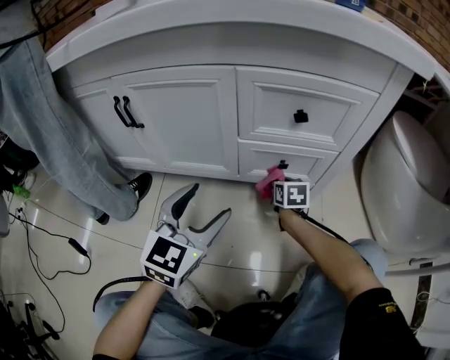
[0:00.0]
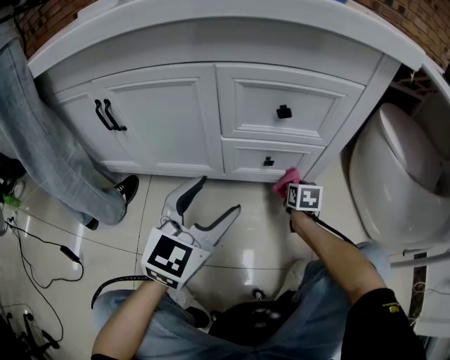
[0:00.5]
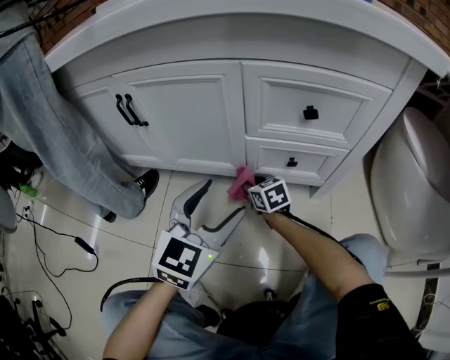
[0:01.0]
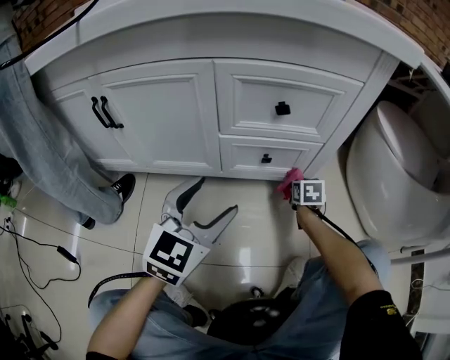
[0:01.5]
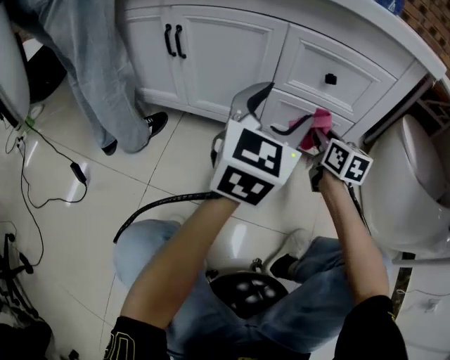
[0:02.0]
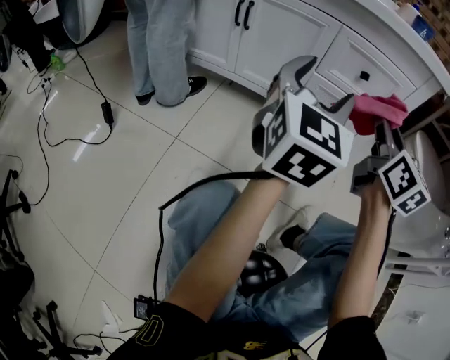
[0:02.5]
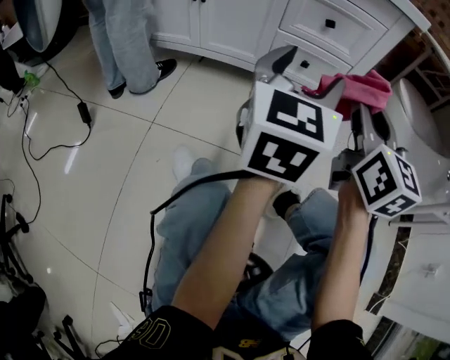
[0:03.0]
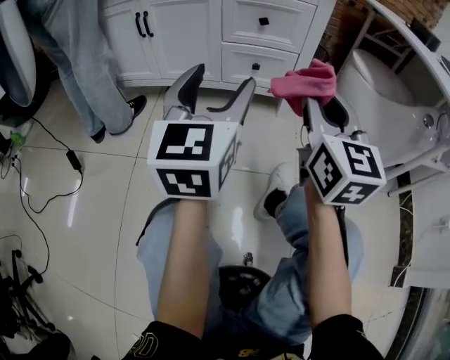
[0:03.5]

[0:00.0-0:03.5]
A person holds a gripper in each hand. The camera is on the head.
0:00.0 to 0:02.0: The left gripper shifts roughly 10 cm upward. Meanwhile the right gripper moves upward, about 20 cm, and turns by about 20 degrees.
0:02.0 to 0:03.5: The right gripper moves backward and upward, approximately 35 cm, and swivels approximately 30 degrees, while the left gripper goes approximately 20 cm backward.

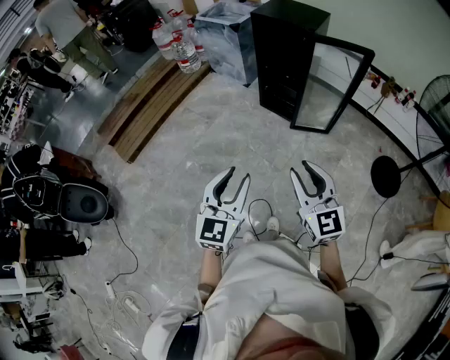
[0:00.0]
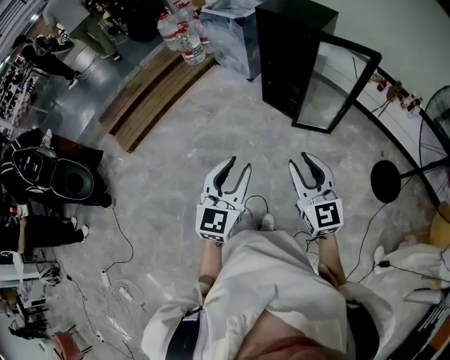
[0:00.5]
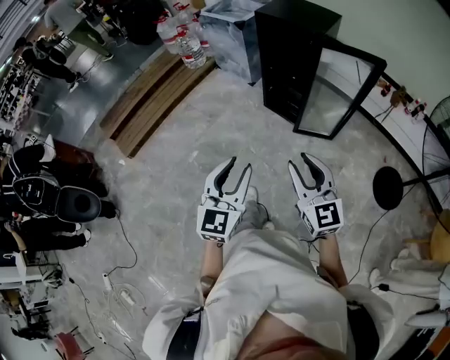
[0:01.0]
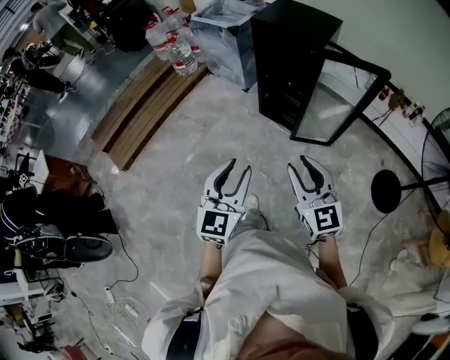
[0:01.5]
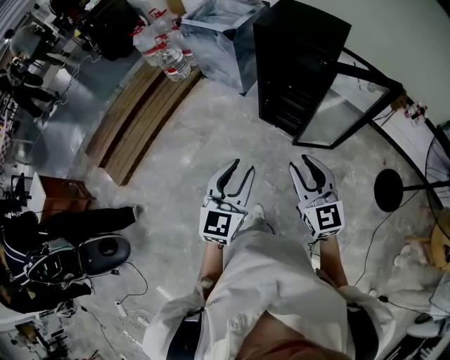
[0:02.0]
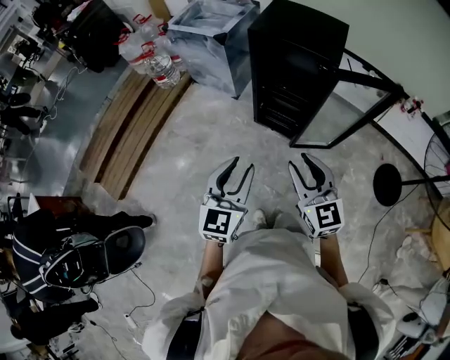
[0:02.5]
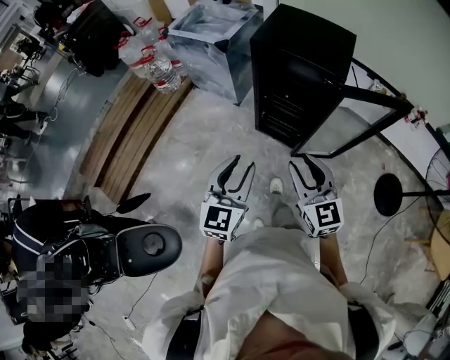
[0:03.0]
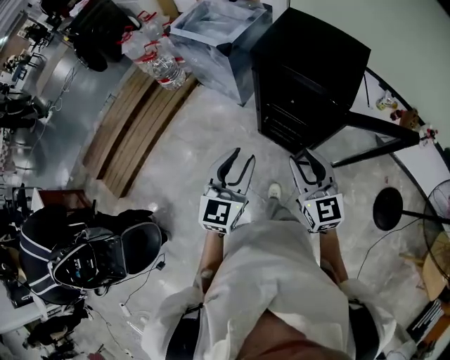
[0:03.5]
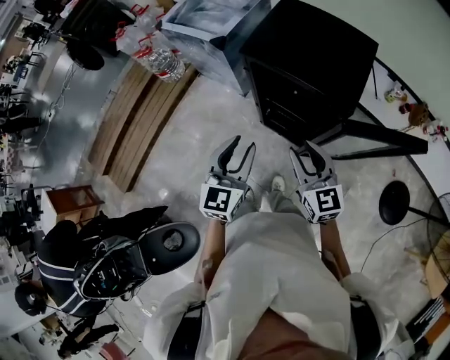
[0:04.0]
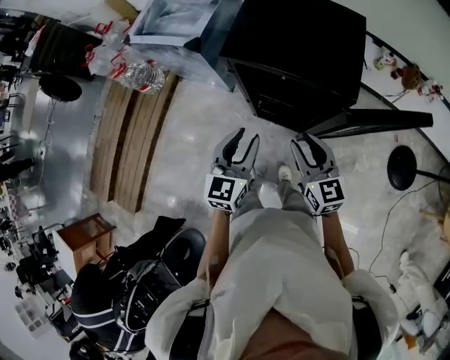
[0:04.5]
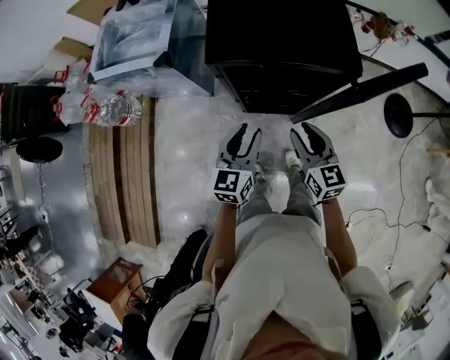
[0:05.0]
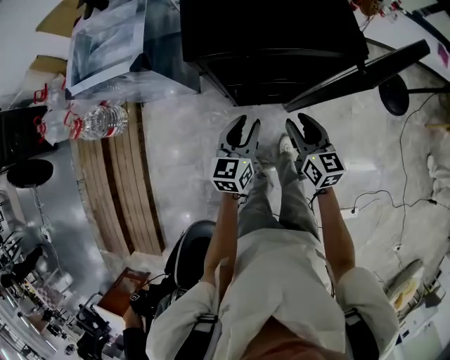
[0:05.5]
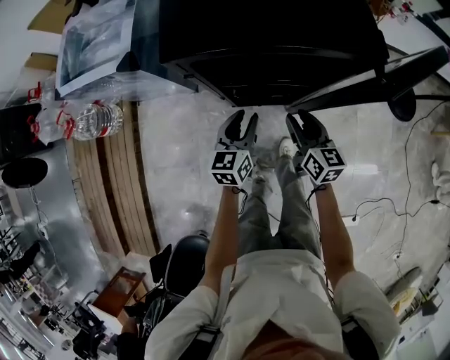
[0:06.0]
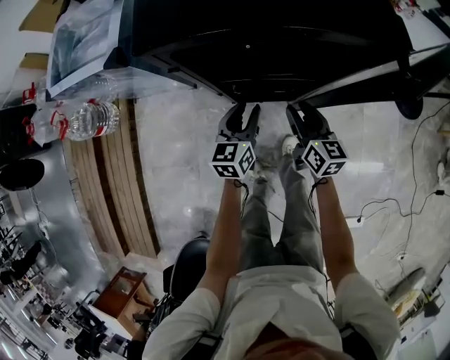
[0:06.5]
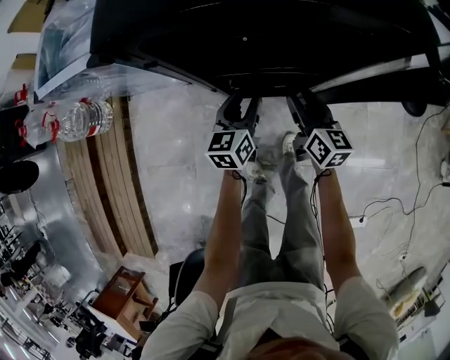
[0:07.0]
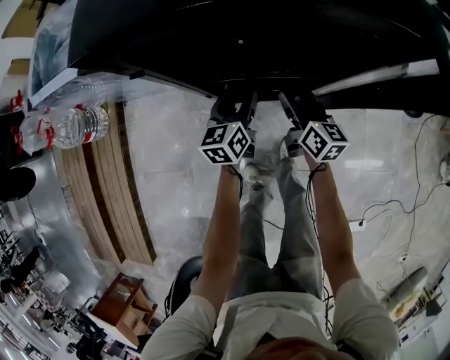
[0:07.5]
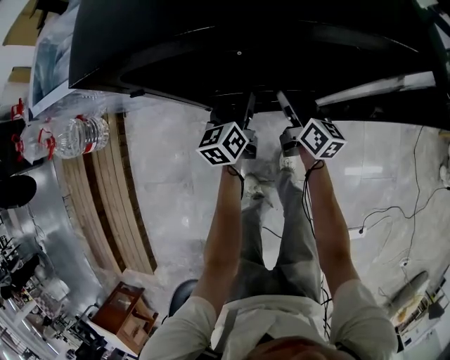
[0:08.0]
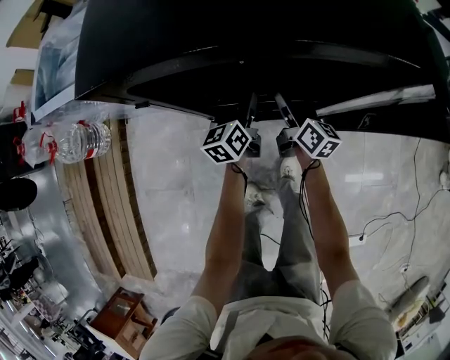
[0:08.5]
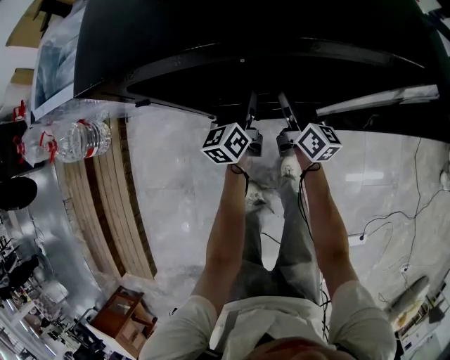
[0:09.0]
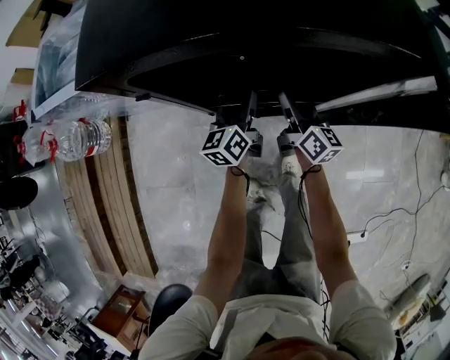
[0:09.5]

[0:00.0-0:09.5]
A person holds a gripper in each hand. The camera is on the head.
0:00.0 to 0:02.0: The two grippers go about 30 cm forward.
0:02.0 to 0:04.0: The grippers both shift forward by approximately 35 cm.
0:04.0 to 0:05.5: Both grippers move downward, about 20 cm. The right gripper turns by about 40 degrees. The left gripper changes its angle by about 40 degrees.
0:05.5 to 0:07.5: Both grippers travel together downward and forward, about 25 cm.

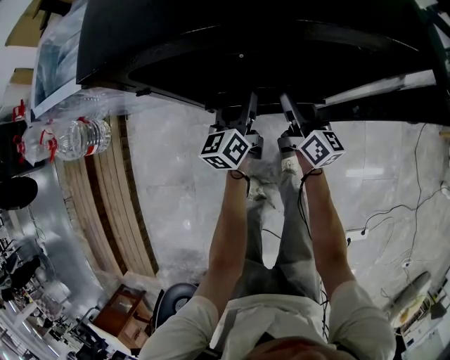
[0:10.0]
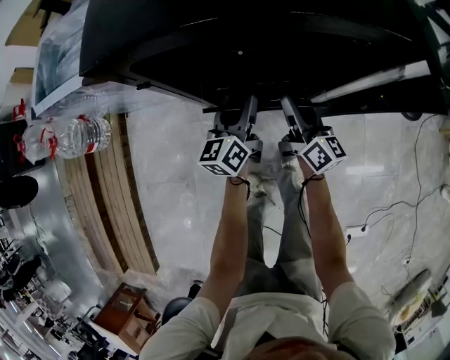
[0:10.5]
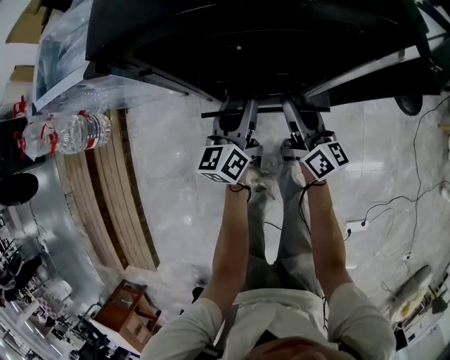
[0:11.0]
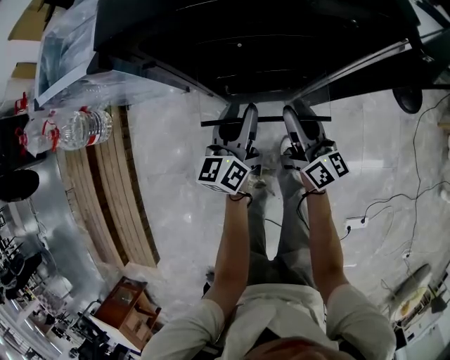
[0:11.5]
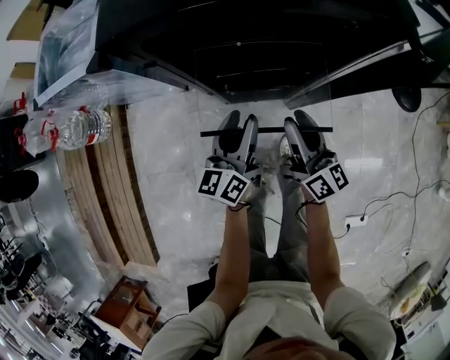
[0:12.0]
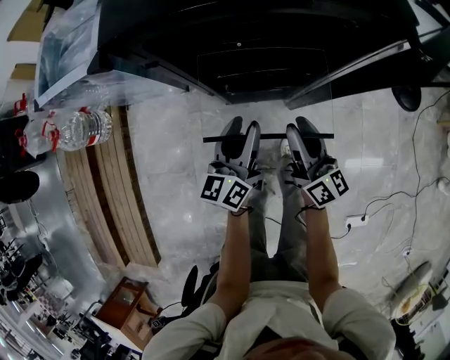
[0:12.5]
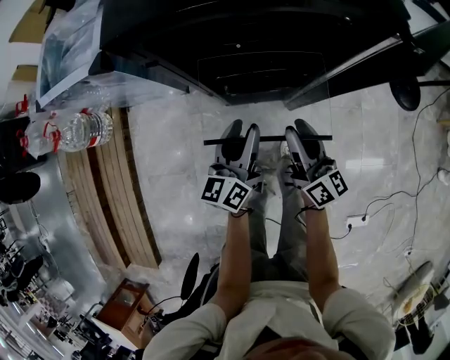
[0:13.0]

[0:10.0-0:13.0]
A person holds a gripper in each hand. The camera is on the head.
0:10.0 to 0:11.5: The two grippers go roughly 10 cm backward and upward.
0:11.5 to 0:13.0: The right gripper moves about 5 cm.

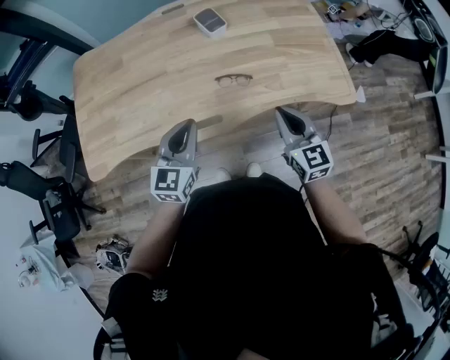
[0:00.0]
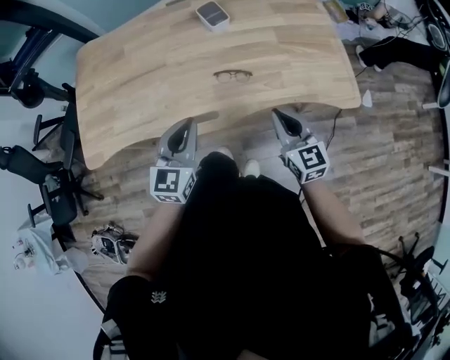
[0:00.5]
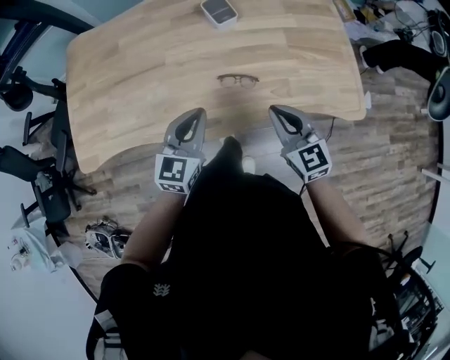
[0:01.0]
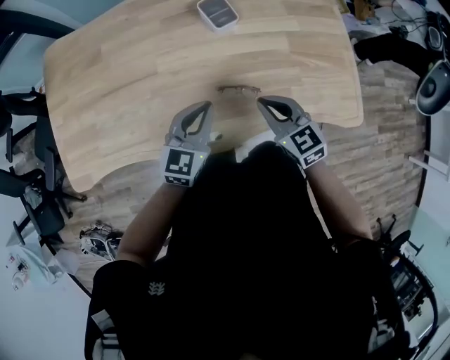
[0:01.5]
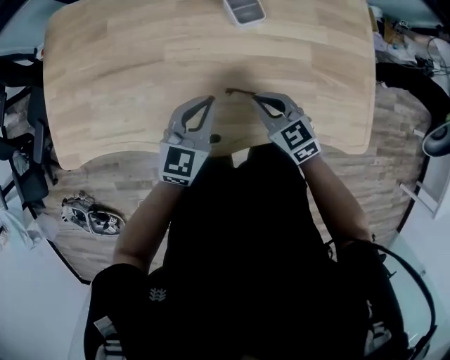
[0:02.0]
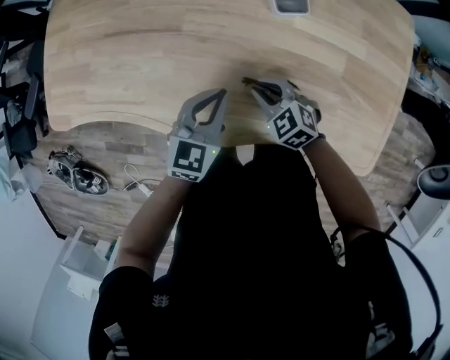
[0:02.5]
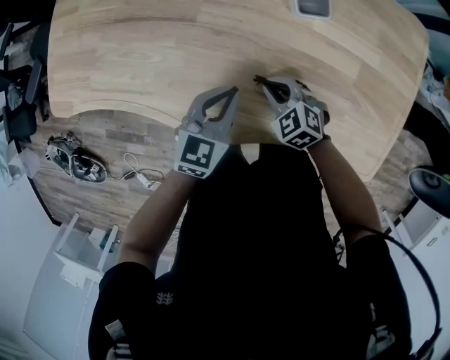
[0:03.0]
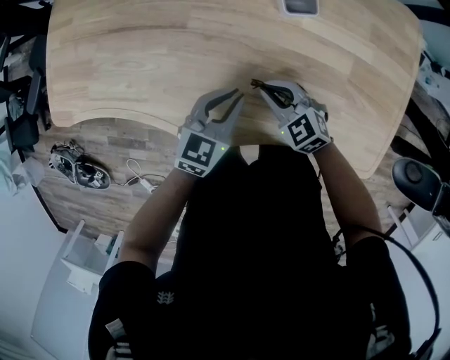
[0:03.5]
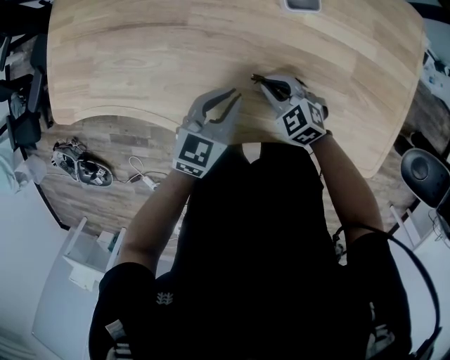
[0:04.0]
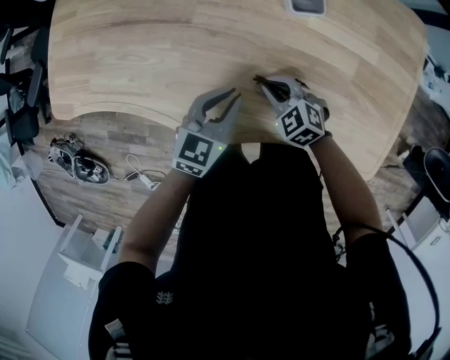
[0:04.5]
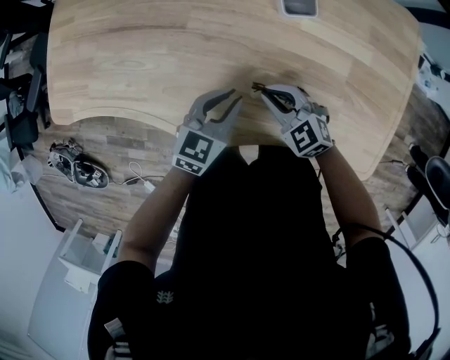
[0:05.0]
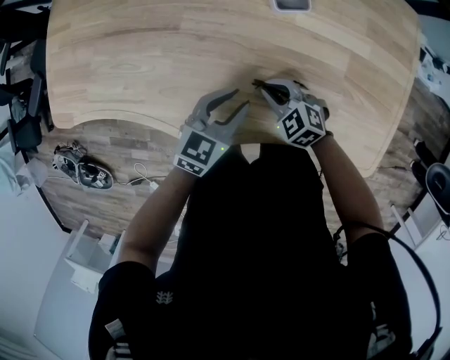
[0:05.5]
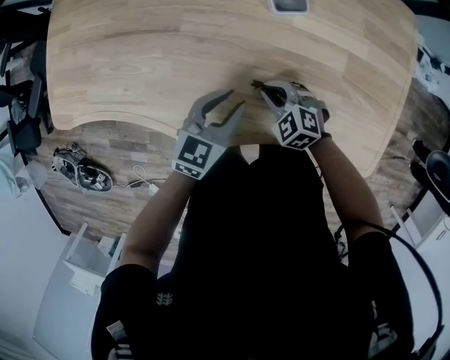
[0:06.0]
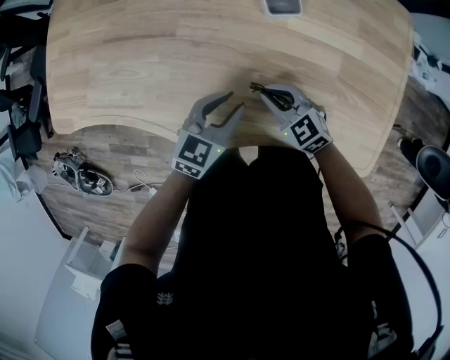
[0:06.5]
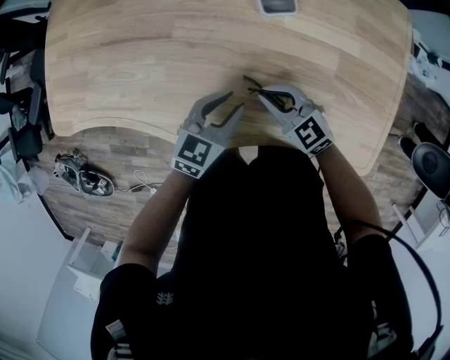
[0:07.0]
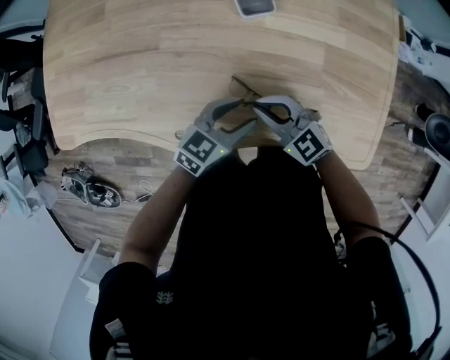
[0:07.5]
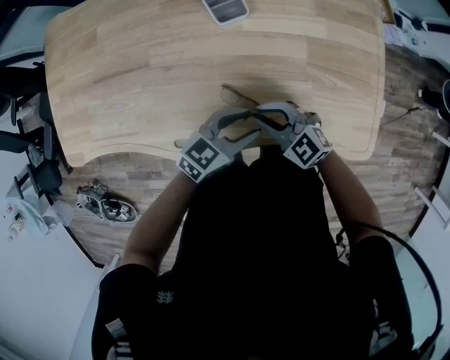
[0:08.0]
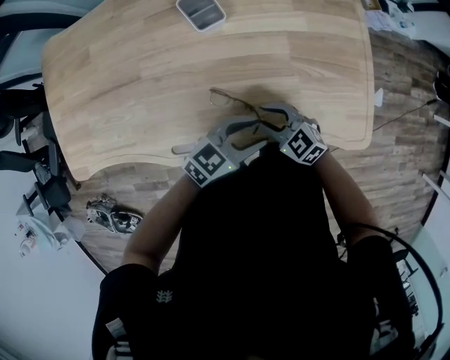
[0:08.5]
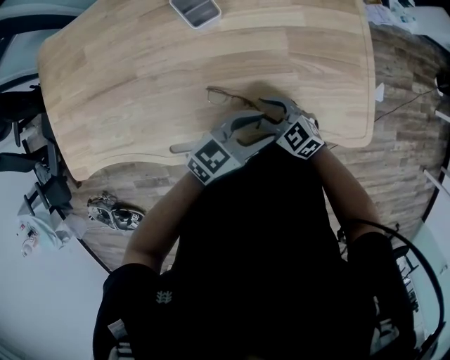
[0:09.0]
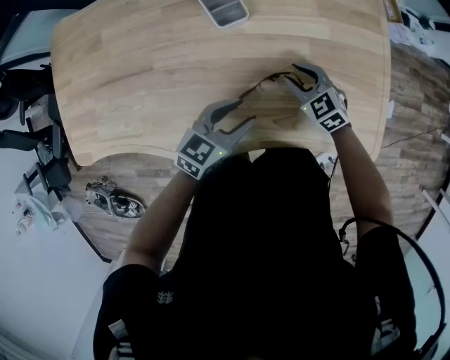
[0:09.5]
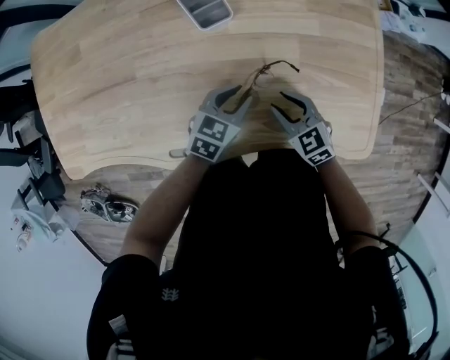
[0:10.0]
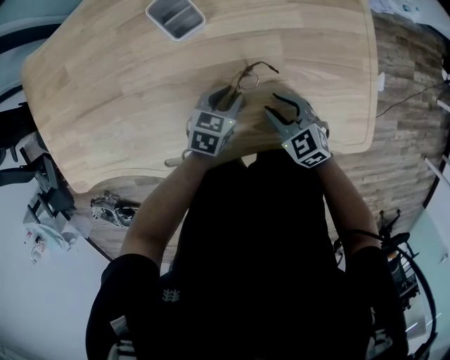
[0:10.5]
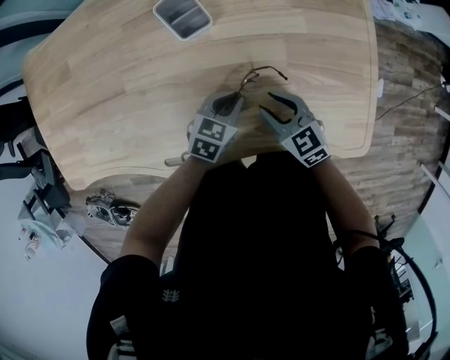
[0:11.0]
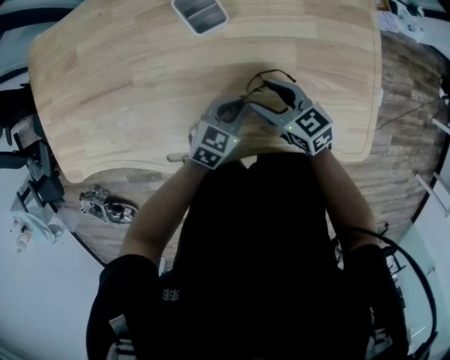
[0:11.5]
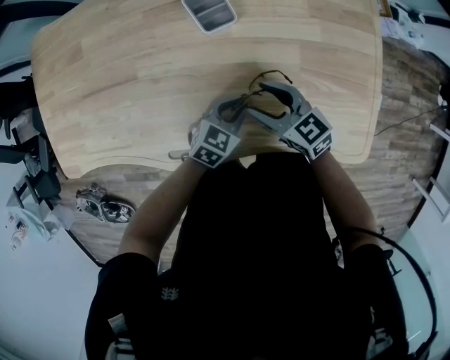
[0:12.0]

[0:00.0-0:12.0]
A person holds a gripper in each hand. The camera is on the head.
0:00.0 to 0:02.0: Both grippers travel together forward and downward, approximately 25 cm. The right gripper swivels about 40 degrees.
0:02.0 to 0:04.0: The grippers both shift downward by some 10 cm. The right gripper rotates some 30 degrees.
0:04.0 to 0:06.0: The grippers move only a little.
0:06.0 to 0:08.0: The left gripper ends up about 15 cm from where it was, and rotates some 30 degrees, while the right gripper shifts some 10 cm upward, and swivels about 30 degrees.
0:08.0 to 0:10.0: The right gripper moves some 10 cm, rotates some 30 degrees, and opens; the left gripper shifts by some 10 cm.
0:10.0 to 0:12.0: The right gripper is displaced to the left and upward by about 10 cm, swivels some 20 degrees, and opens up.
